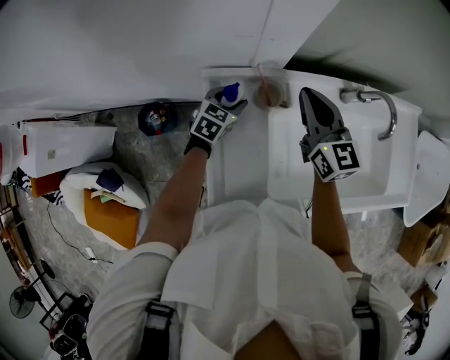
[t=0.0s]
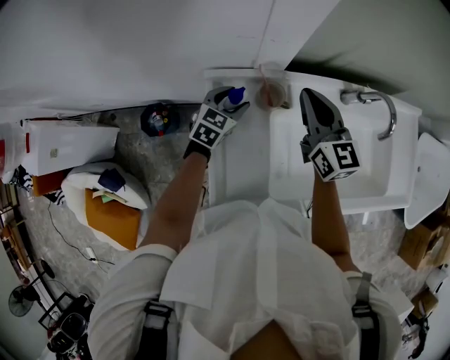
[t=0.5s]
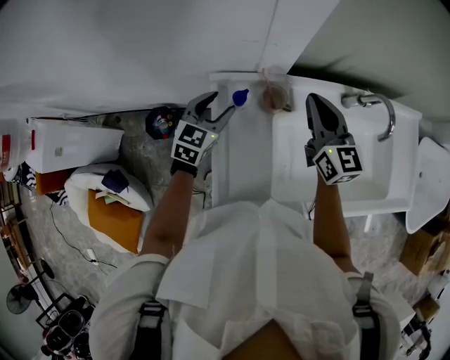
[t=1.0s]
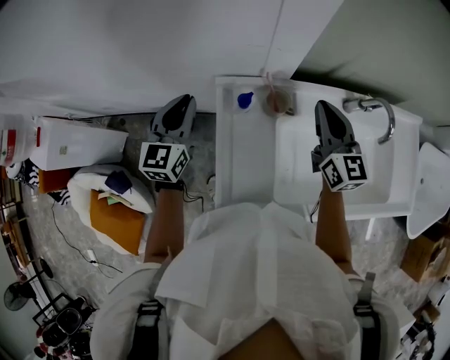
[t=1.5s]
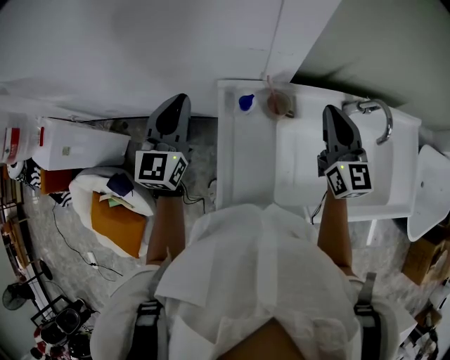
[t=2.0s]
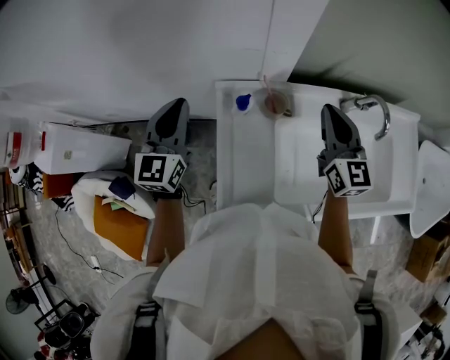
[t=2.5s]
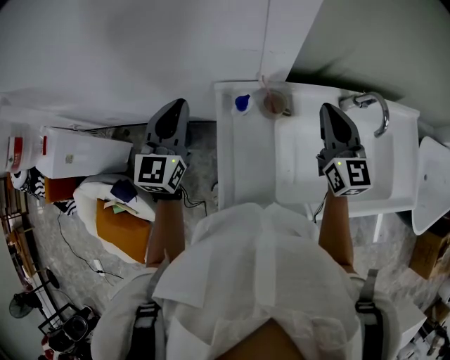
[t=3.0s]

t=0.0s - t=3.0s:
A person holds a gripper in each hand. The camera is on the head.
t=0.0s - t=1.5s: The left gripper shifts roughly 25 cm upward and to the left, turns by roughly 40 degrees, and closes up.
t=1.5s - t=3.0s: The left gripper goes about 5 cm upward.

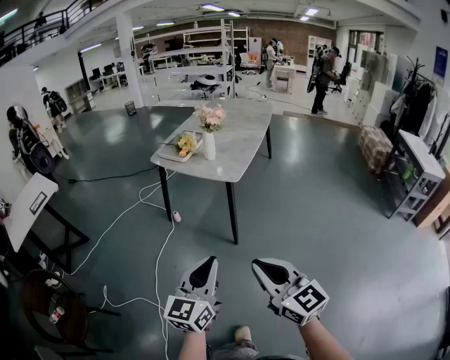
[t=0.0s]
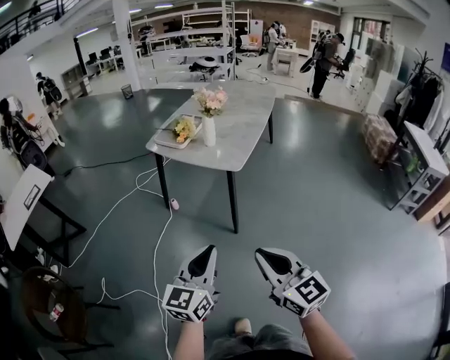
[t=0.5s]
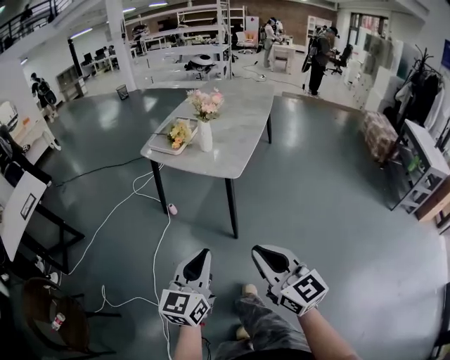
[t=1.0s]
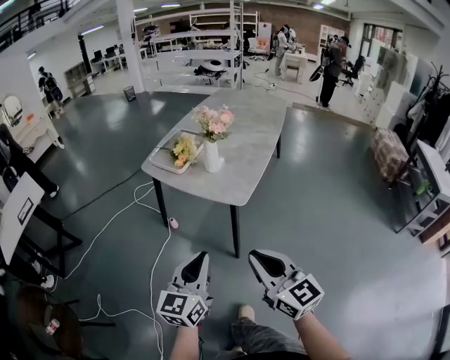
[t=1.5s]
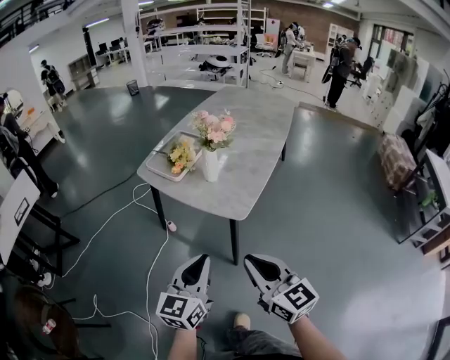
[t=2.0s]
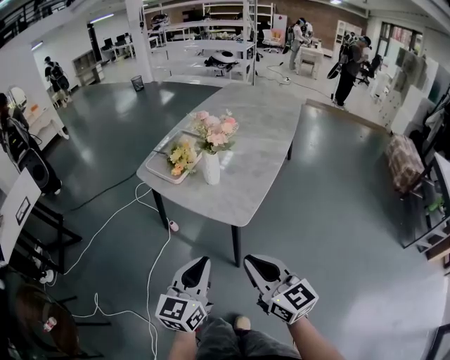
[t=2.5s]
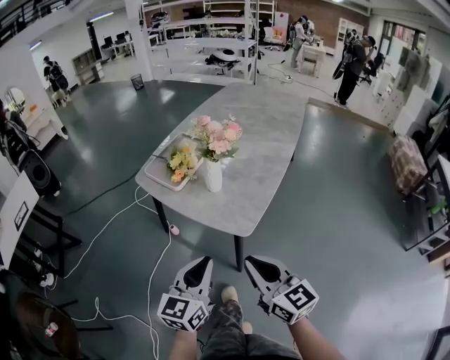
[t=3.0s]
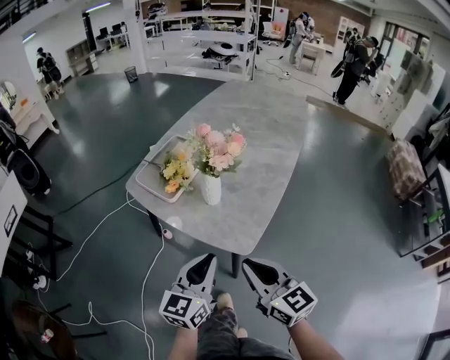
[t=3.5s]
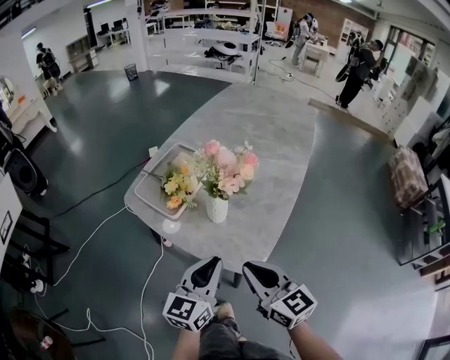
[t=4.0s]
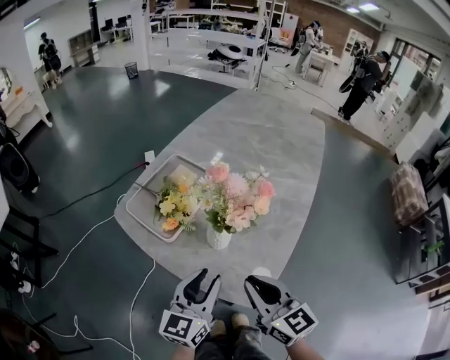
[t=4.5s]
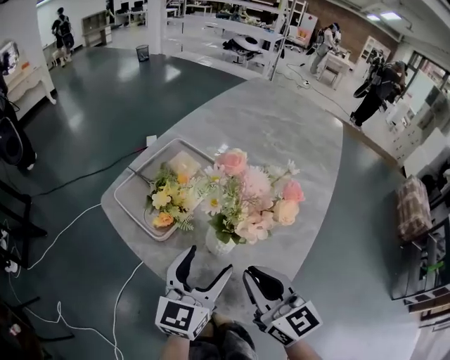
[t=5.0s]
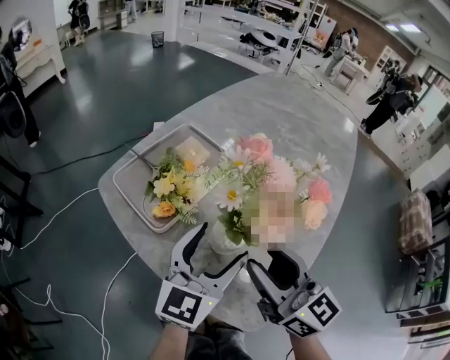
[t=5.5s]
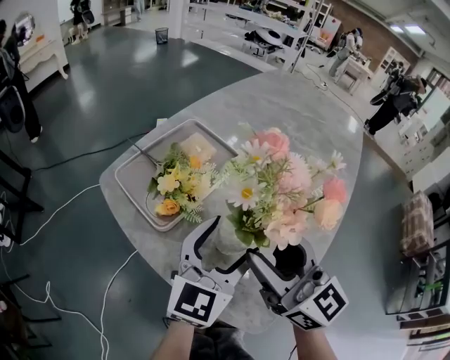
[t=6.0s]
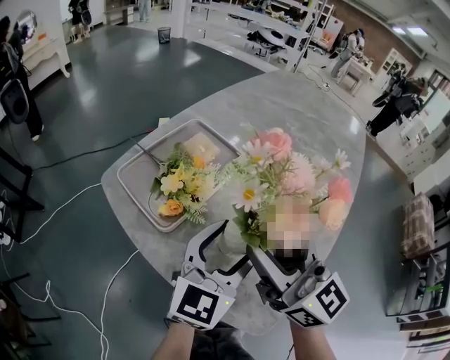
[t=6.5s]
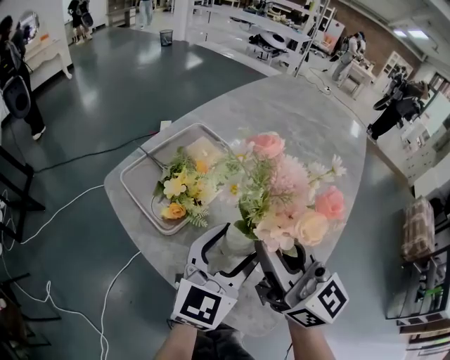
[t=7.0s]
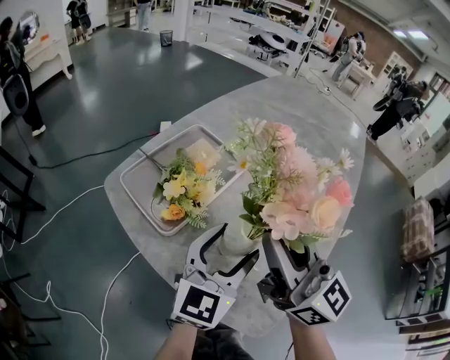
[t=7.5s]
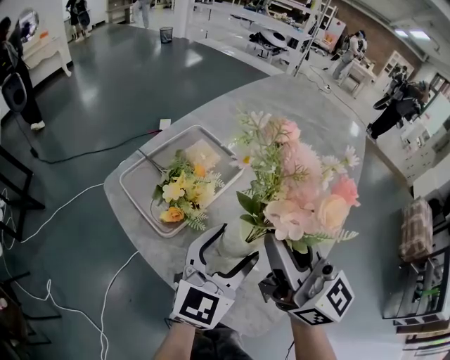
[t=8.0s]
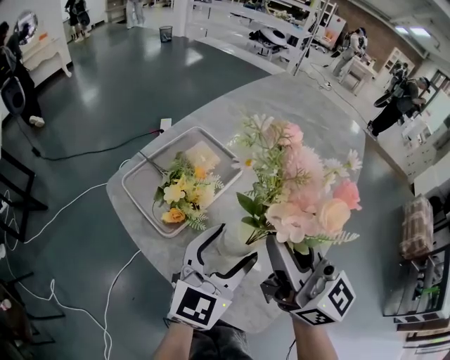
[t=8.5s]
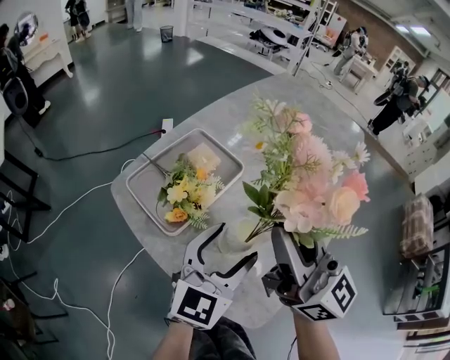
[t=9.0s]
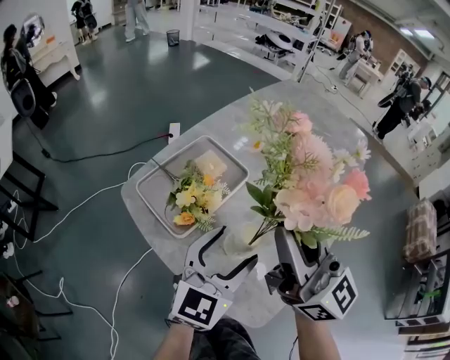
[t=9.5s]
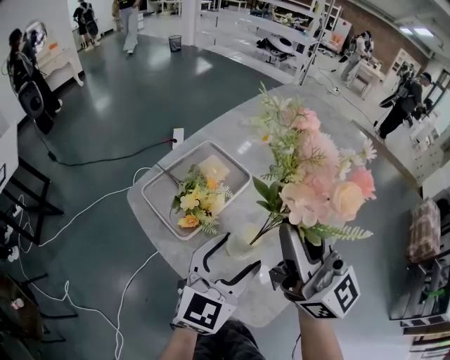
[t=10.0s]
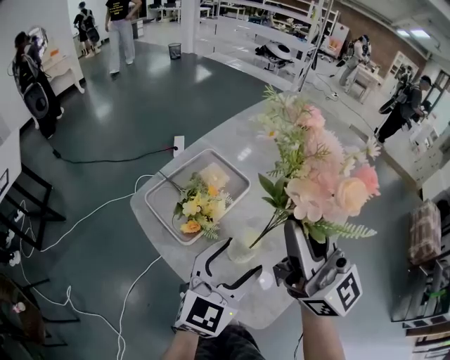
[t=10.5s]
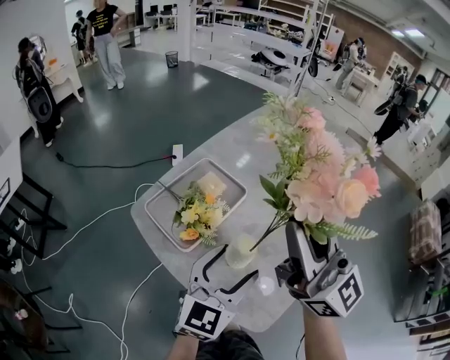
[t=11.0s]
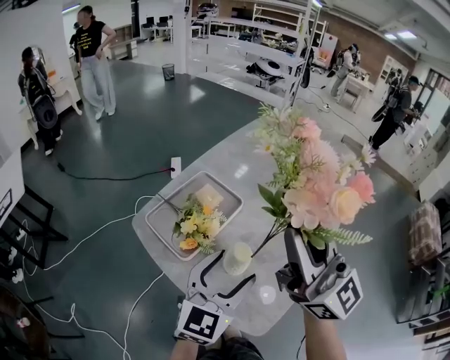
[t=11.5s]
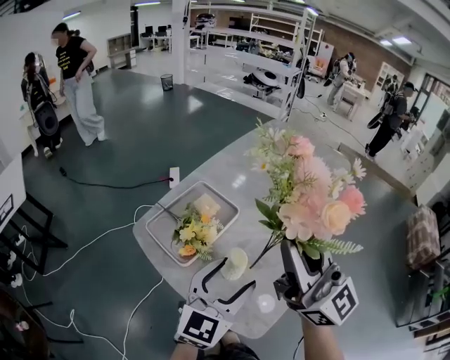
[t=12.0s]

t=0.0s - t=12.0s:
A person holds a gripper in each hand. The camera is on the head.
t=0.0s - t=2.0s: Both grippers move forward, roughly 30 cm.
t=2.0s - t=4.0s: Both grippers move forward, some 25 cm.
t=4.0s - t=6.0s: Both grippers travel together forward, approximately 20 cm. The left gripper opens its fingers, while the right gripper opens its fingers.
t=6.0s - t=8.0s: The right gripper heads upward, covering roughly 5 cm, and closes its fingers.
t=8.0s - t=10.0s: The right gripper goes about 10 cm upward. Meanwhile the left gripper heads upward, covering some 5 cm.
t=10.0s - t=12.0s: Both grippers travel together upward, about 5 cm.

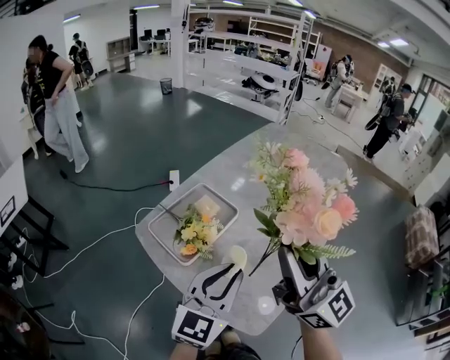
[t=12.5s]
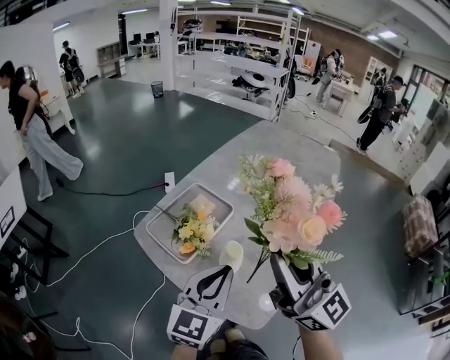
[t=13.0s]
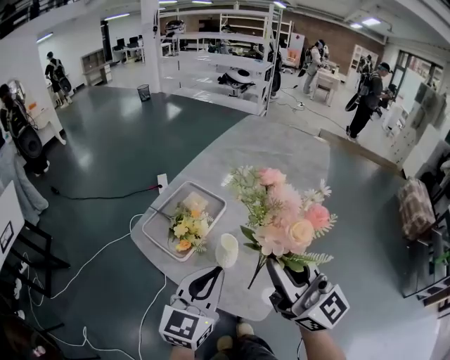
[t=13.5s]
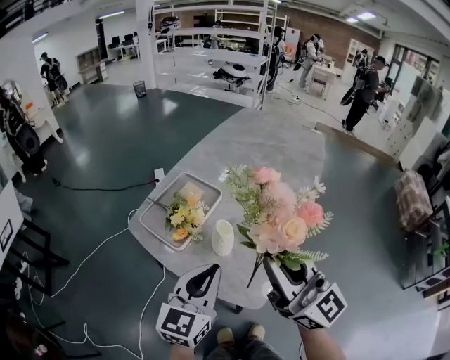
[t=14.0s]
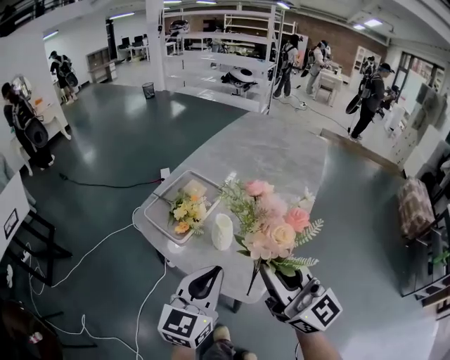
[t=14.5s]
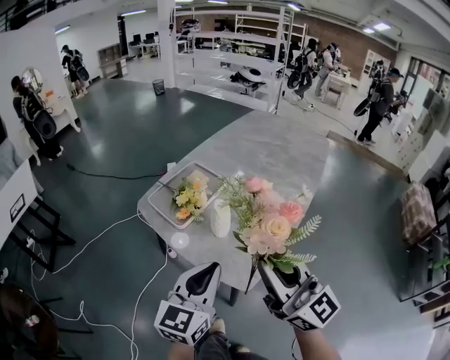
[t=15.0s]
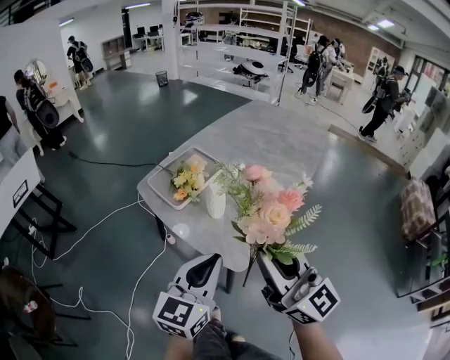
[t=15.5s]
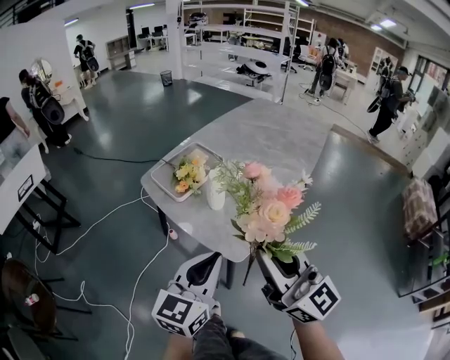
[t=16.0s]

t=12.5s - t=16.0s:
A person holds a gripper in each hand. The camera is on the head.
t=12.5s - t=14.5s: The left gripper heads backward, covering some 10 cm, while the right gripper is displaced backward and downward by approximately 15 cm.
t=14.5s - t=16.0s: Both grippers travel together backward, approximately 15 cm.

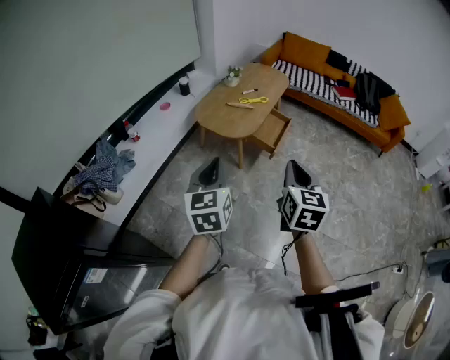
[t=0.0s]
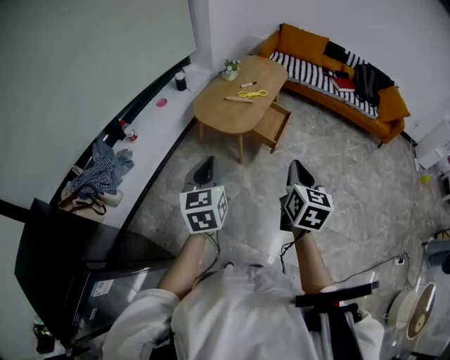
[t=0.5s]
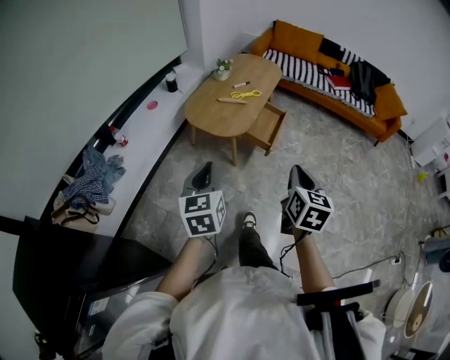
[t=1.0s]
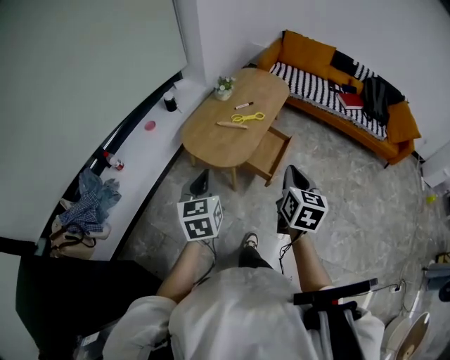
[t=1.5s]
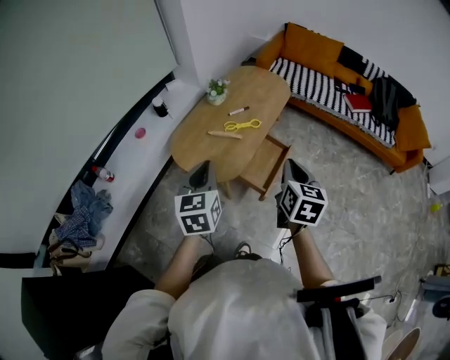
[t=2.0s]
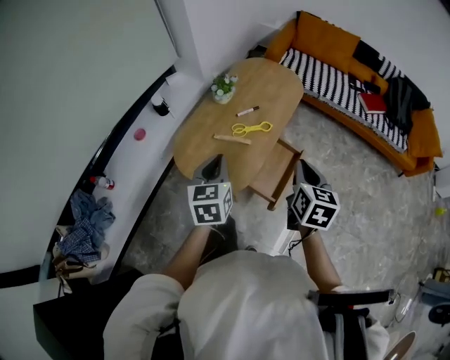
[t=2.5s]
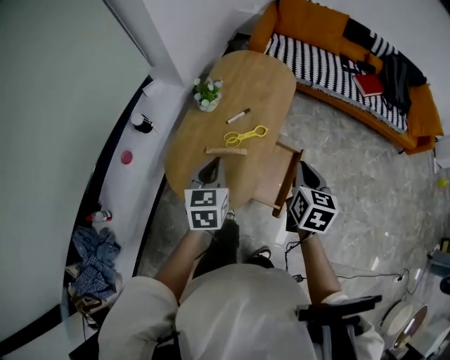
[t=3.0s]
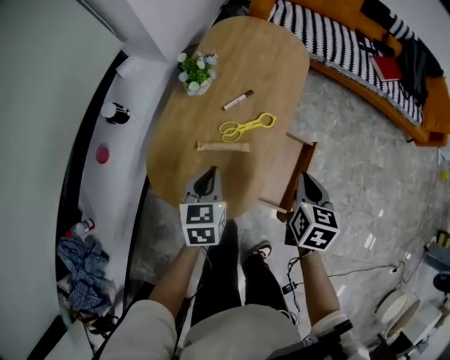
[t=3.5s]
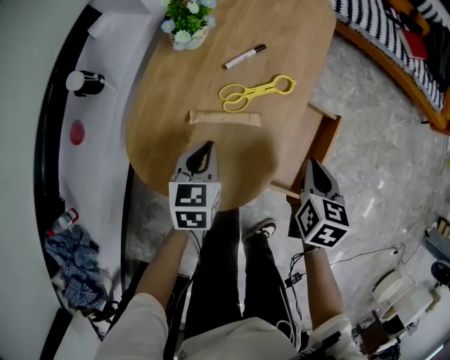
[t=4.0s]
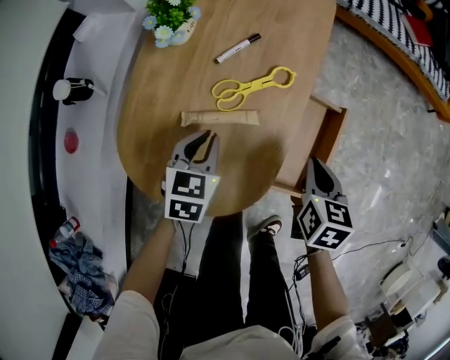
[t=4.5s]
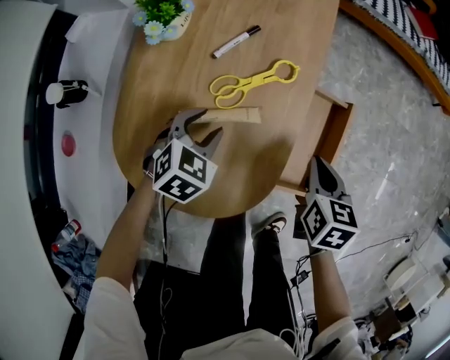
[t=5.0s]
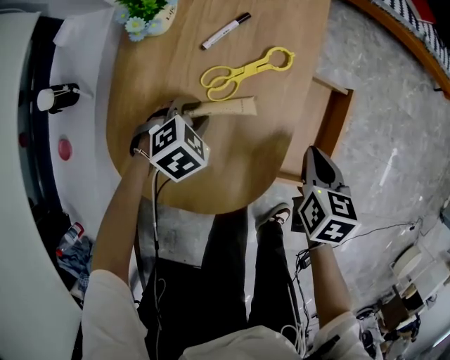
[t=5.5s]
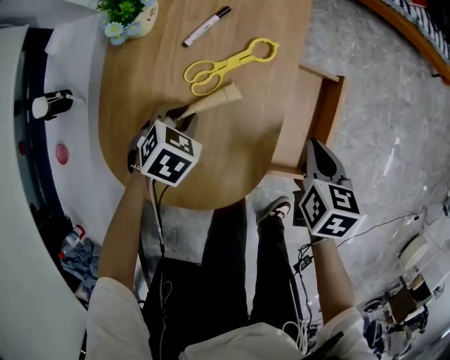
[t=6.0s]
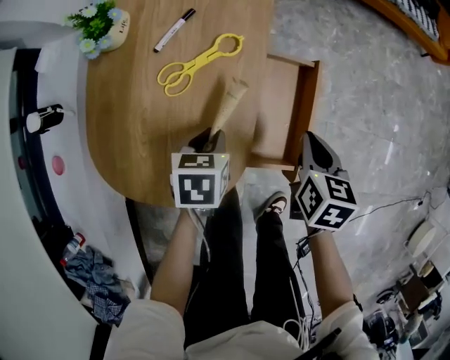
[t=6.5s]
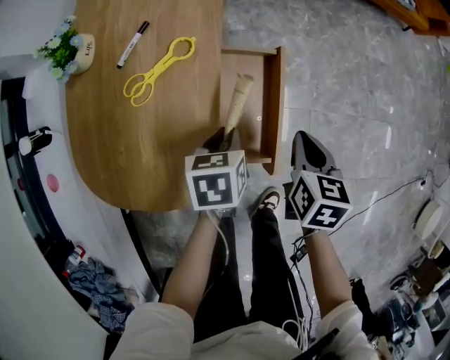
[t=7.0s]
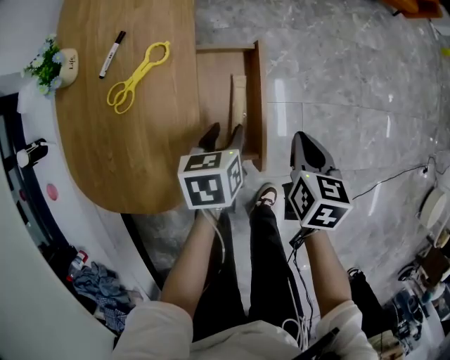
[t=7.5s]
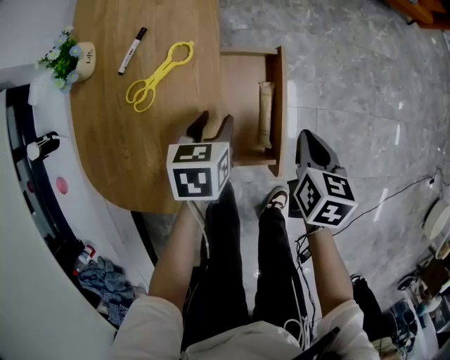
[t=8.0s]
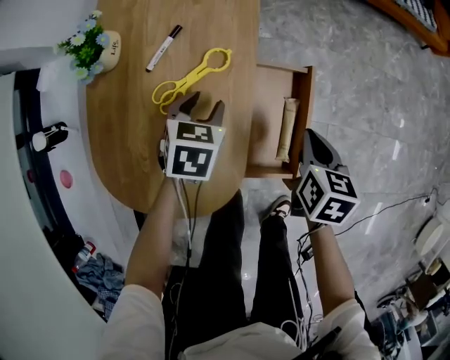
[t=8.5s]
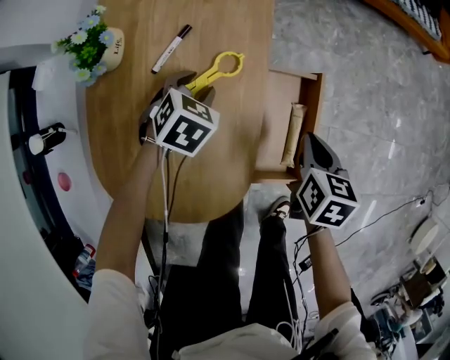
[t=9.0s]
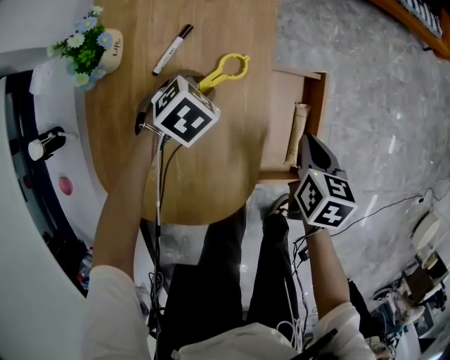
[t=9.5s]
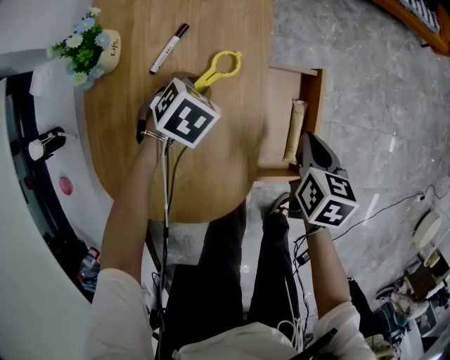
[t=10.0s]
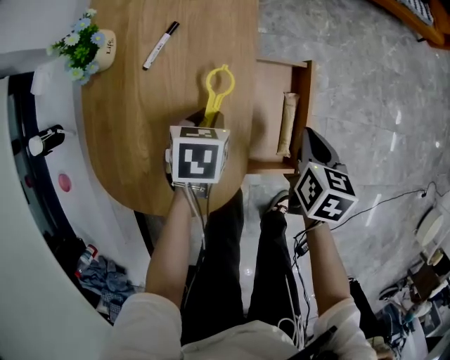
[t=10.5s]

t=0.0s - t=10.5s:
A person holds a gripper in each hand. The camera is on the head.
t=0.0s - t=2.0s: Both grippers are carried forward, some 40 cm.
t=2.0s - t=4.0s: Both grippers move downward and forward, approximately 50 cm. The right gripper swivels approximately 30 degrees, while the left gripper rotates approximately 30 degrees.
t=4.0s - t=6.5s: The two grippers go some 15 cm to the right and downward. The left gripper swivels some 30 degrees, and opens and closes again.
t=6.5s - t=8.5s: The left gripper heads forward, covering approximately 10 cm, moves roughly 15 cm to the right and comes back, rotates roughly 20 degrees, and opens. Meanwhile the right gripper moves some 15 cm to the right and comes back.
